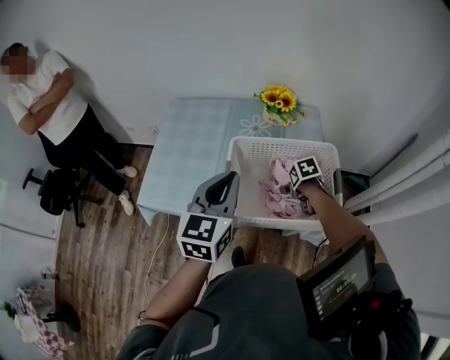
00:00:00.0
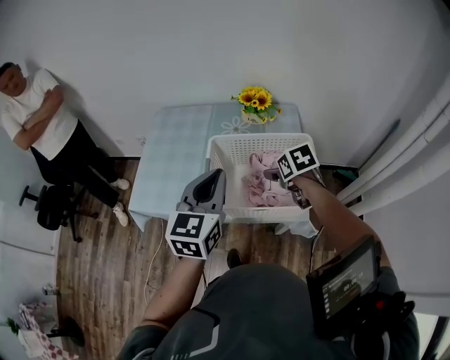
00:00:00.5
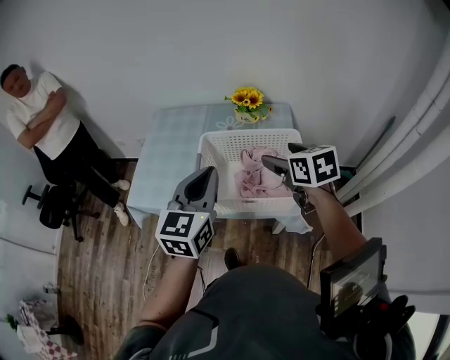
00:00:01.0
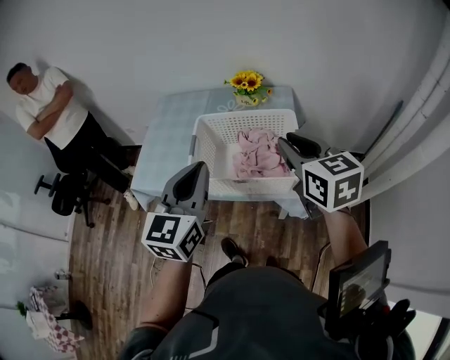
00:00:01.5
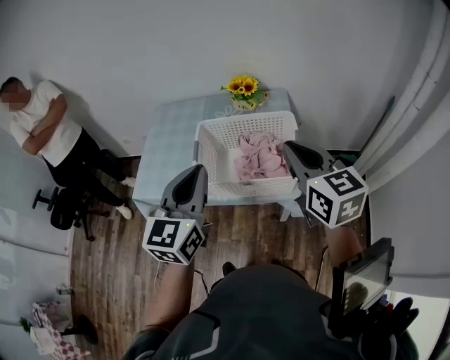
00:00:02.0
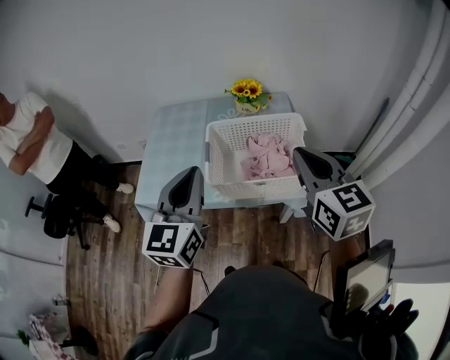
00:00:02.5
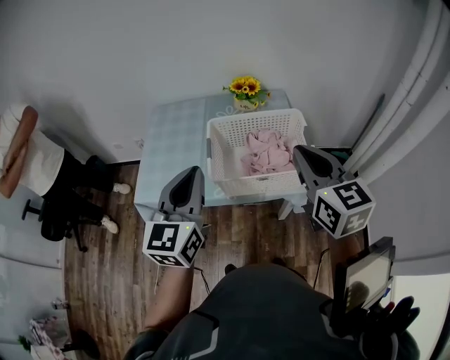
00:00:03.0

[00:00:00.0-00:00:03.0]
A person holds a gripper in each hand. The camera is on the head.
00:00:00.0 to 00:00:01.5: The left gripper is displaced backward, to the right and upward by some 15 cm. Meanwhile the right gripper heads upward, covering roughly 35 cm, points its fingers approximately 60 degrees further upward, and closes its fingers.
00:00:01.5 to 00:00:03.0: The right gripper shifts roughly 10 cm backward and to the left, while the left gripper travels to the left by about 10 cm.

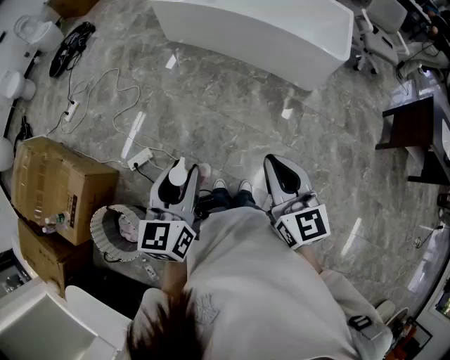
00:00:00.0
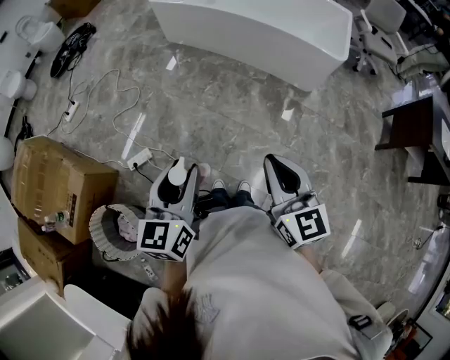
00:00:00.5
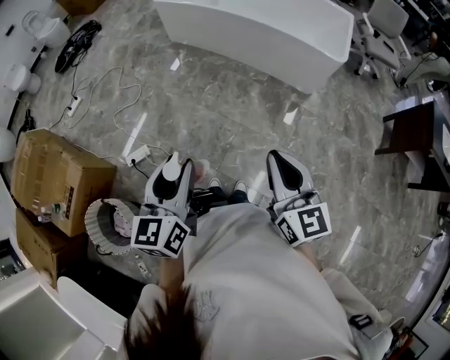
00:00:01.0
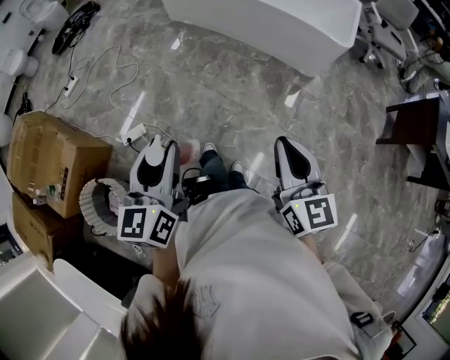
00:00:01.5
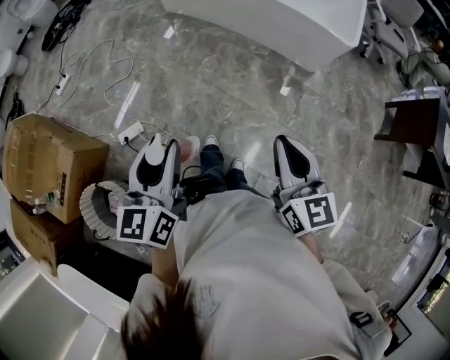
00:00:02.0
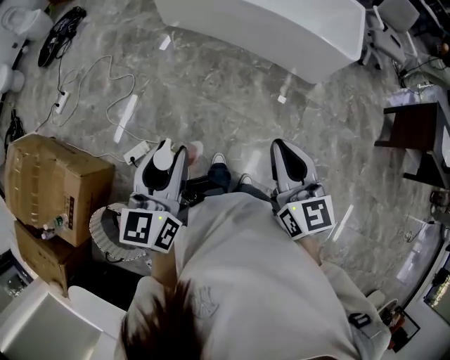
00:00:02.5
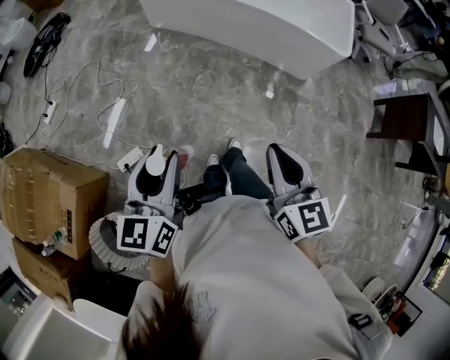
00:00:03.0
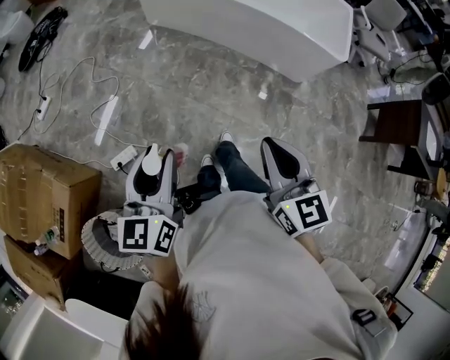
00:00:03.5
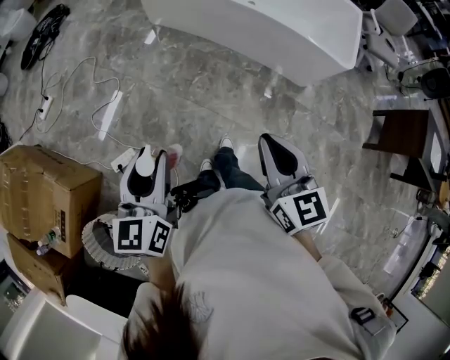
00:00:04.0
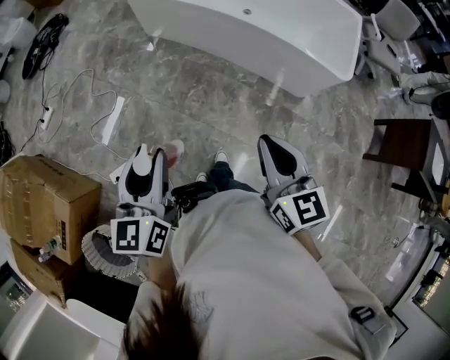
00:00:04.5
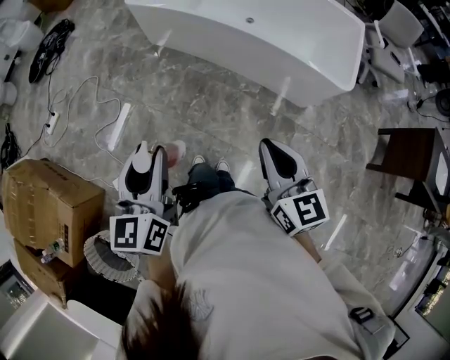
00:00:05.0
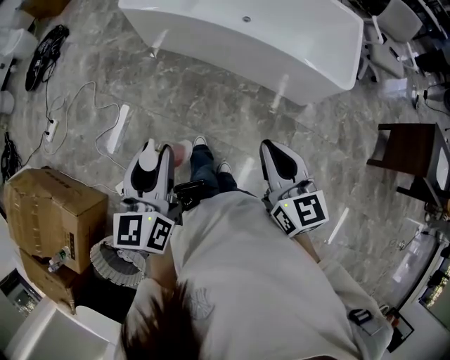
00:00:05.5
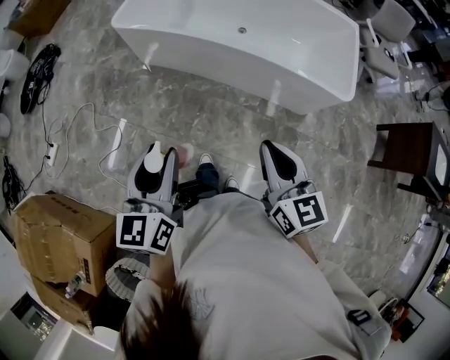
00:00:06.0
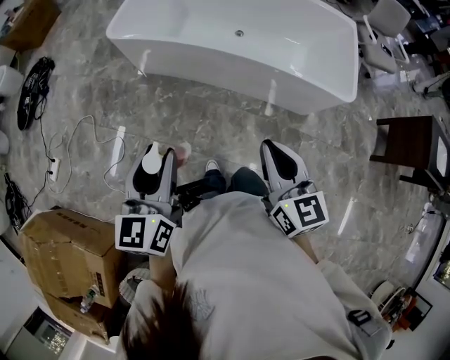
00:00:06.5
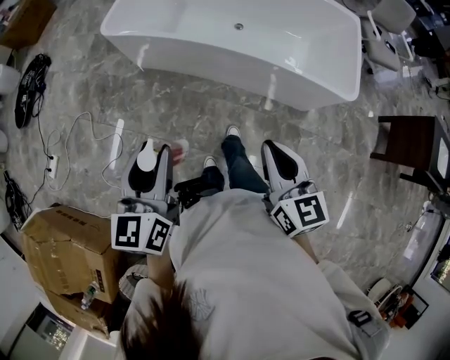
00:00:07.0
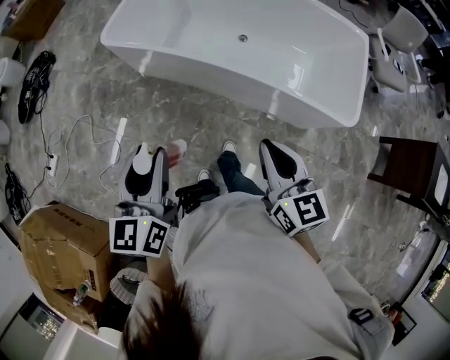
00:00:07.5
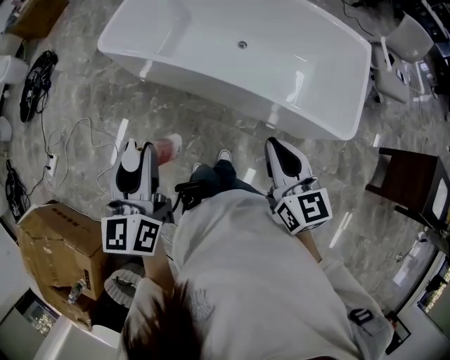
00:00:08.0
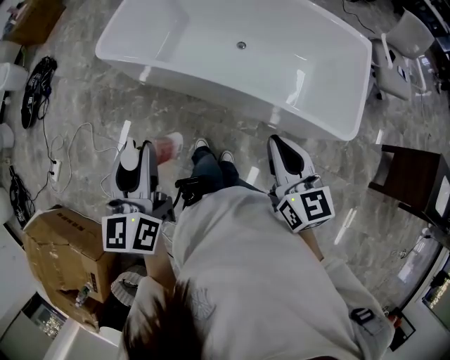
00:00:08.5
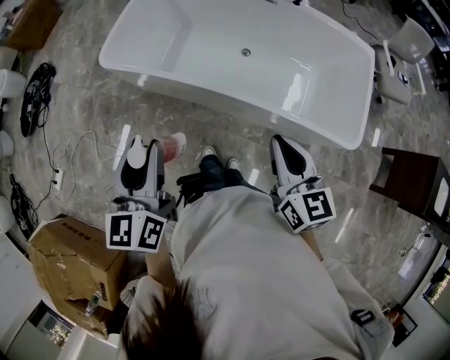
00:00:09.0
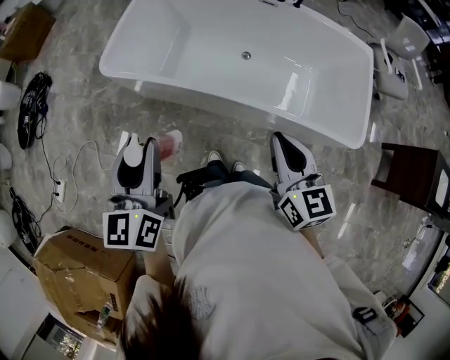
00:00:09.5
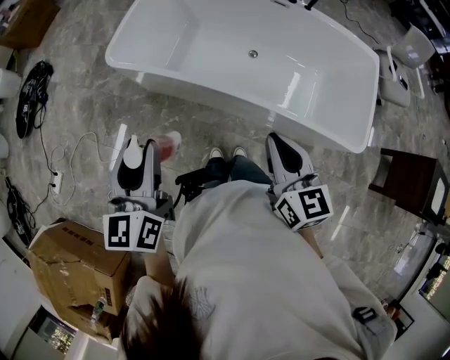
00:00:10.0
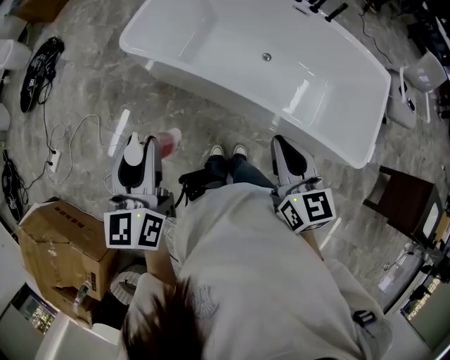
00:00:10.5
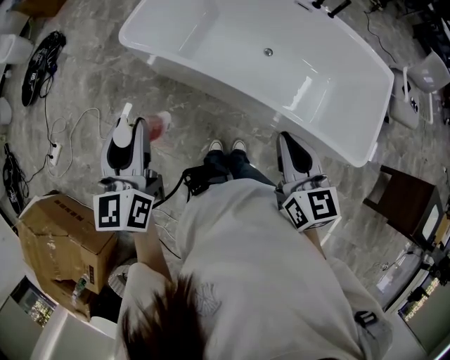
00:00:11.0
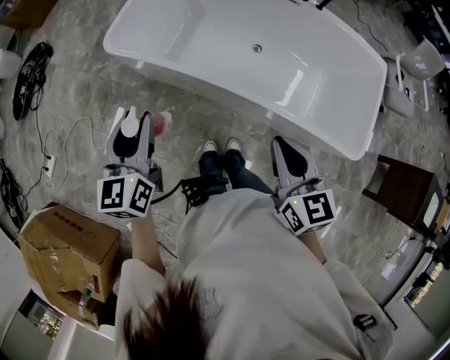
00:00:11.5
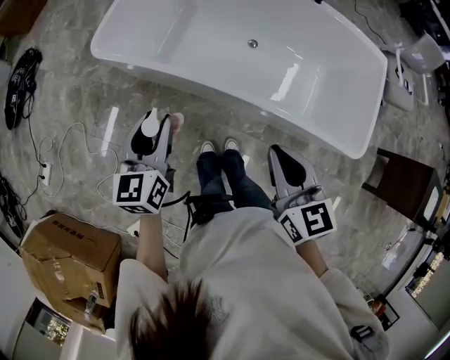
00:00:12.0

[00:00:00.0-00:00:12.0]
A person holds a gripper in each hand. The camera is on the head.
00:00:02.0 to 00:00:04.0: The two grippers go roughly 20 cm forward and to the left.
00:00:04.0 to 00:00:06.0: Both grippers move forward, roughly 25 cm.
00:00:06.0 to 00:00:08.0: The left gripper moves forward, approximately 20 cm. Meanwhile the right gripper travels forward and to the right by approximately 25 cm.
00:00:08.0 to 00:00:10.0: Both grippers move forward and to the left, some 20 cm.
00:00:10.0 to 00:00:12.0: The left gripper is displaced downward, forward and to the right by roughly 15 cm.

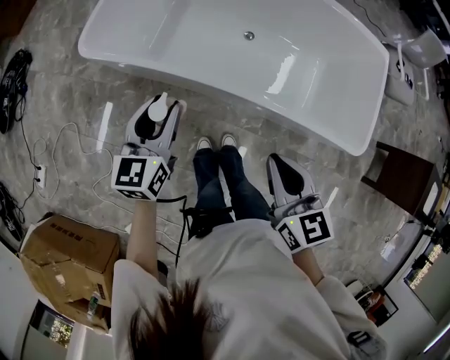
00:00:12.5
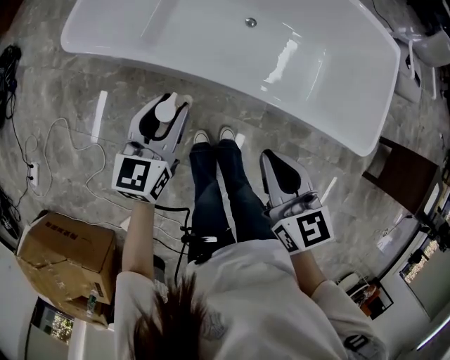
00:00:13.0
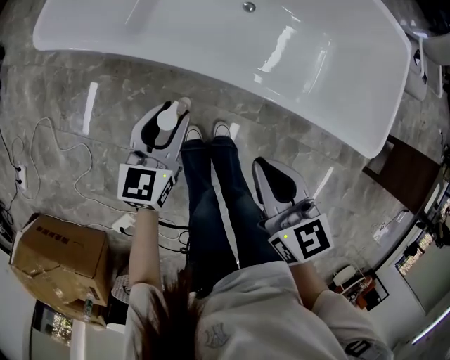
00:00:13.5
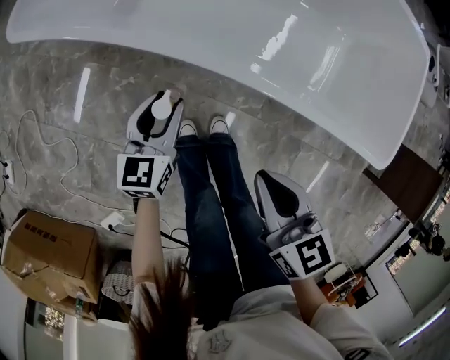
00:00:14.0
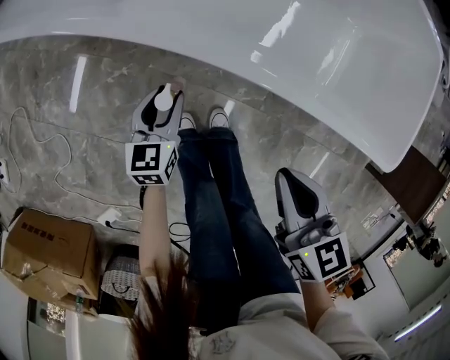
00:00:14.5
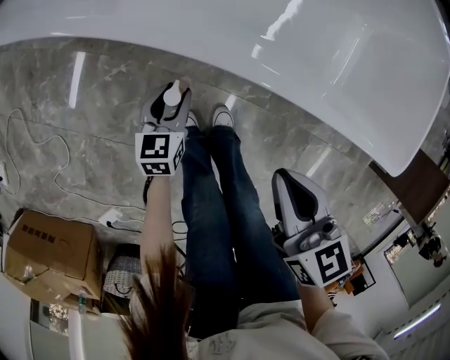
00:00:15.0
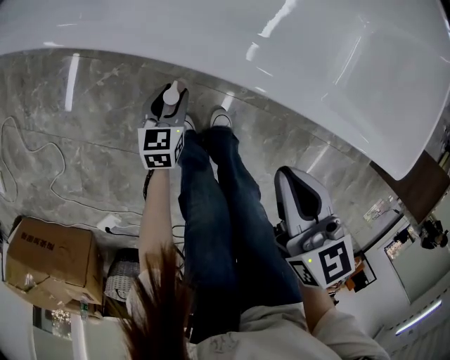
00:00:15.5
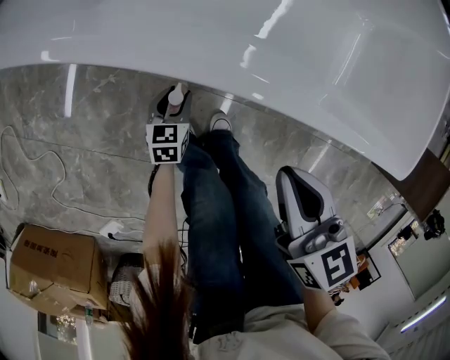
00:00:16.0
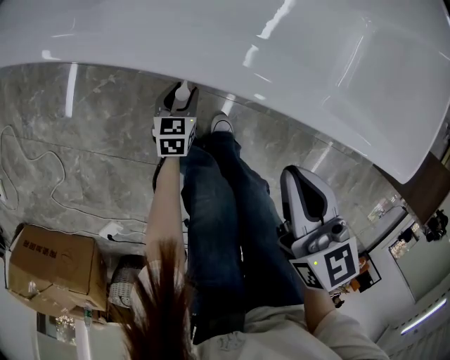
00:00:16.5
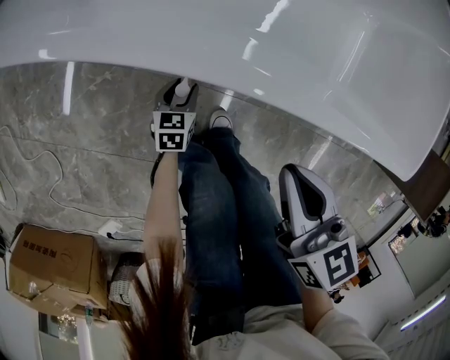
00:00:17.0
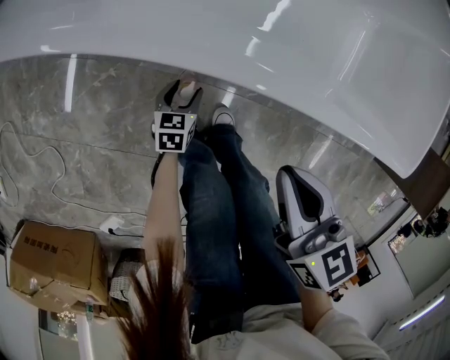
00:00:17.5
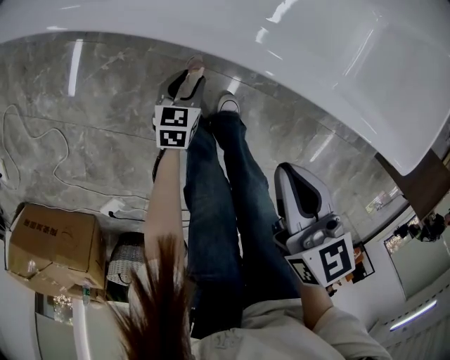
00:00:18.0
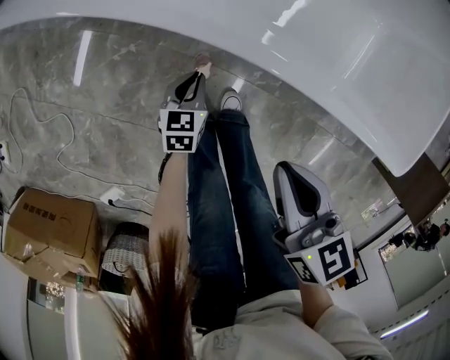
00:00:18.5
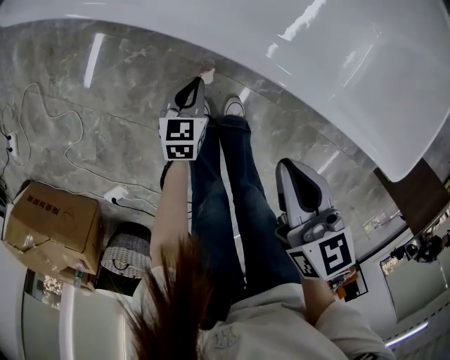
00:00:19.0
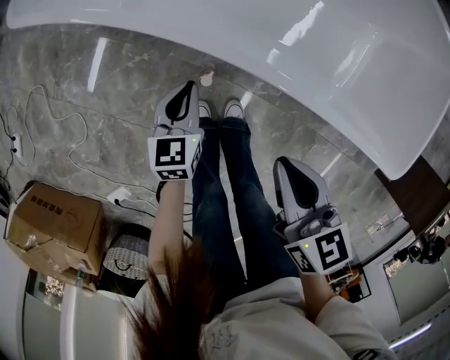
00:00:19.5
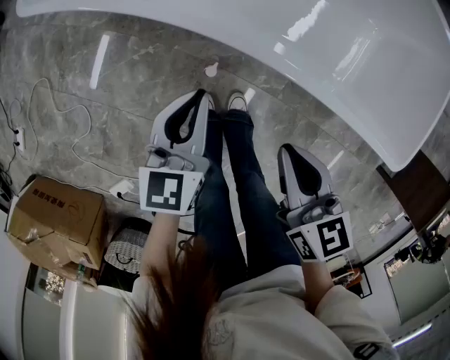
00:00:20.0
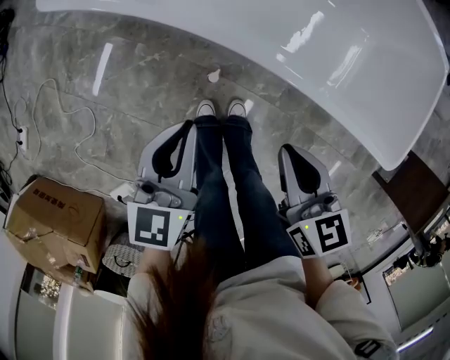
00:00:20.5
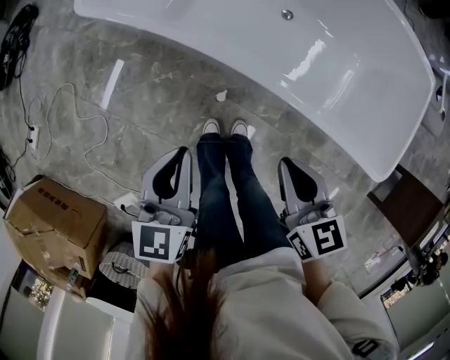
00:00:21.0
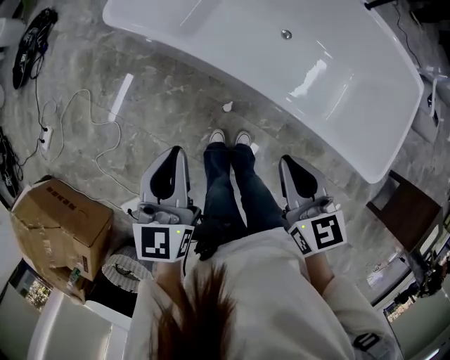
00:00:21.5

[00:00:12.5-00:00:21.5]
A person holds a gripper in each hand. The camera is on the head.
00:00:12.5 to 00:00:14.5: The right gripper shifts about 25 cm downward, while the left gripper is displaced downward by approximately 40 cm.
00:00:14.5 to 00:00:17.0: The right gripper goes approximately 10 cm downward, while the left gripper heads downward, covering roughly 25 cm.
00:00:17.0 to 00:00:19.5: The right gripper shifts roughly 10 cm upward, while the left gripper goes roughly 30 cm upward, and closes up.
00:00:19.5 to 00:00:21.5: The right gripper shifts roughly 20 cm upward; the left gripper travels upward by about 40 cm, and turns by roughly 20 degrees.

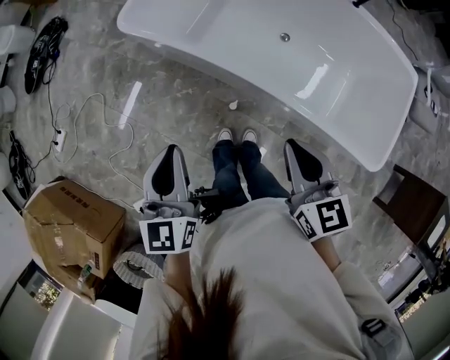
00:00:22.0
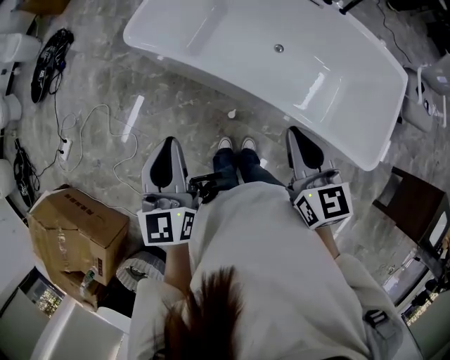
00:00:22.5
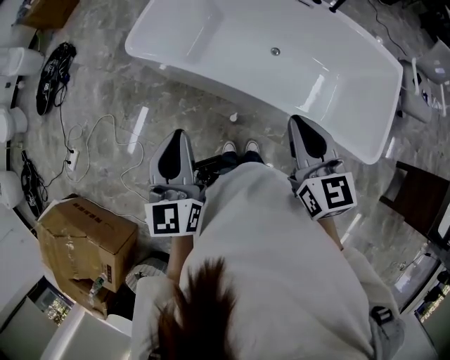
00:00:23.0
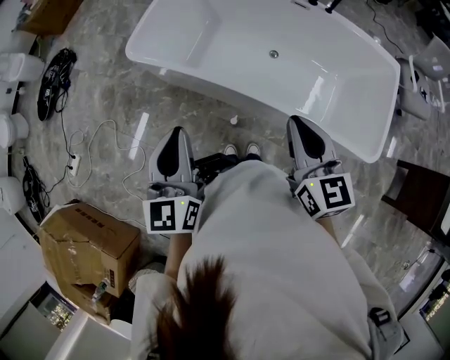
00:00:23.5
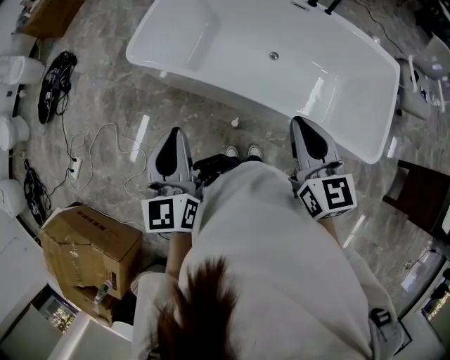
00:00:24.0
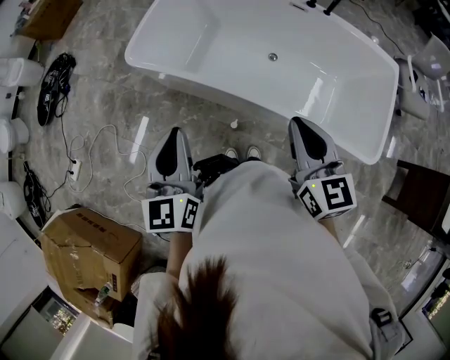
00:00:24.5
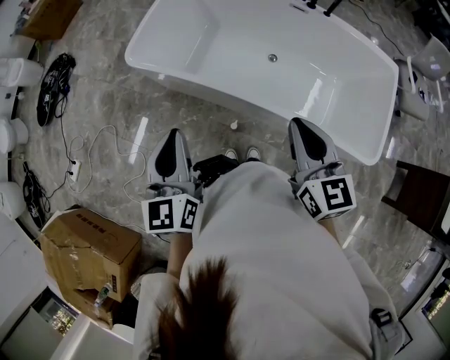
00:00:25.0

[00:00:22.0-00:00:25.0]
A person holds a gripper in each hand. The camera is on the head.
00:00:22.0 to 00:00:23.5: Both grippers travel together upward, some 10 cm.
00:00:23.5 to 00:00:25.0: There are only small adjustments of the grippers.
